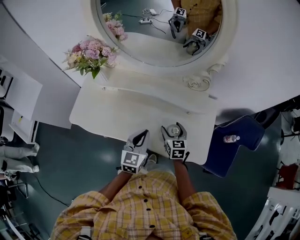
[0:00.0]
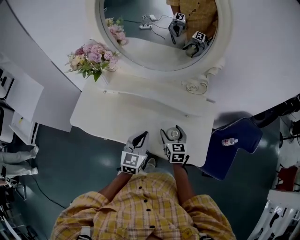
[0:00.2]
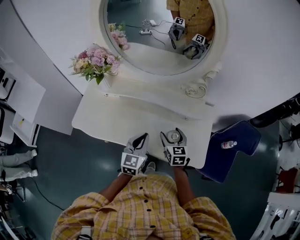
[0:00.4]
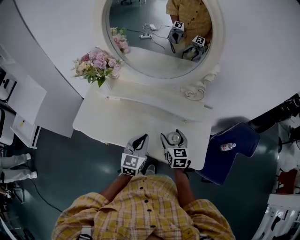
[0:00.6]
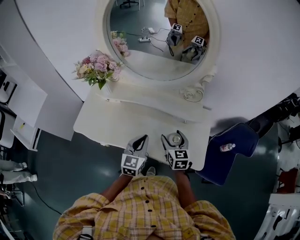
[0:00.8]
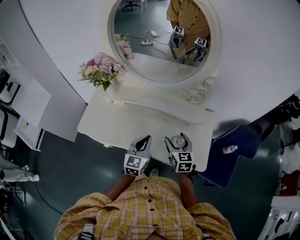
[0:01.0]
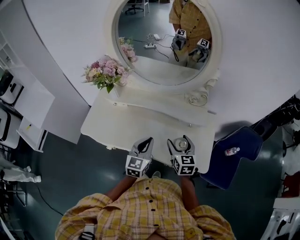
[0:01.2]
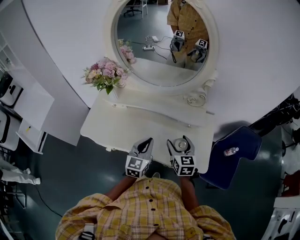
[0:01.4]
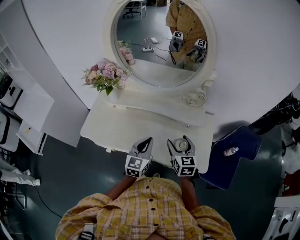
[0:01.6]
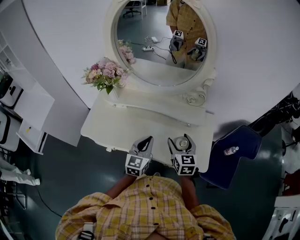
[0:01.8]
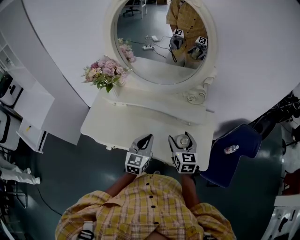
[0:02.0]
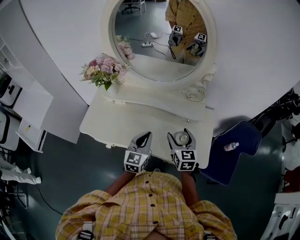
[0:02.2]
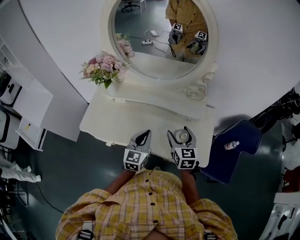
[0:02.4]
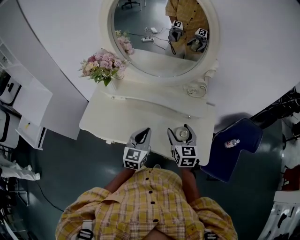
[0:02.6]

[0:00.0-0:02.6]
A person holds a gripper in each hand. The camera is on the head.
0:00.0 to 0:01.2: The left gripper changes place by roughly 5 cm. Meanwhile the right gripper goes some 10 cm upward.
0:01.2 to 0:02.6: The grippers make only small movements.

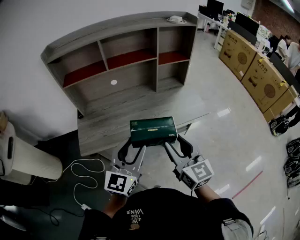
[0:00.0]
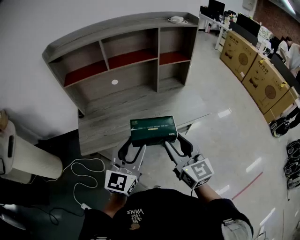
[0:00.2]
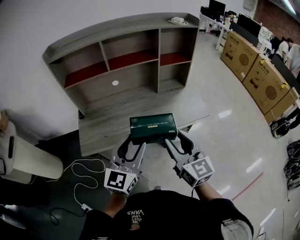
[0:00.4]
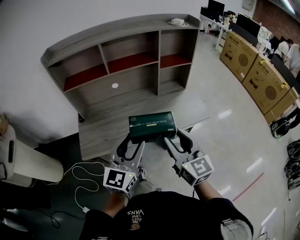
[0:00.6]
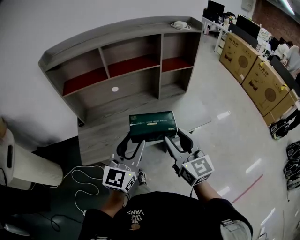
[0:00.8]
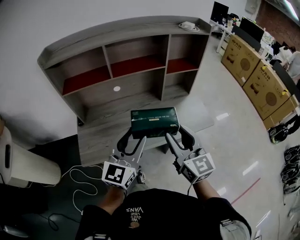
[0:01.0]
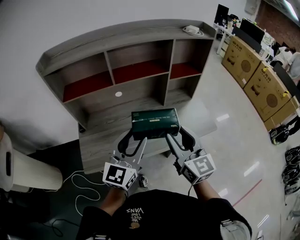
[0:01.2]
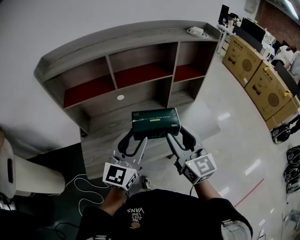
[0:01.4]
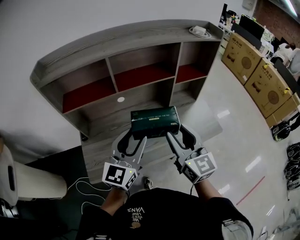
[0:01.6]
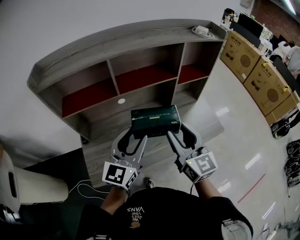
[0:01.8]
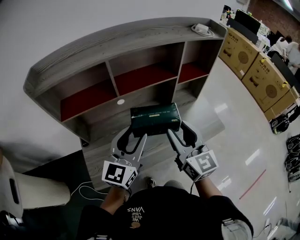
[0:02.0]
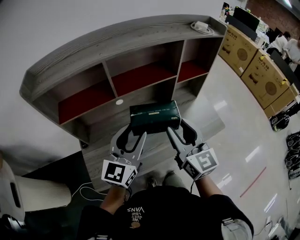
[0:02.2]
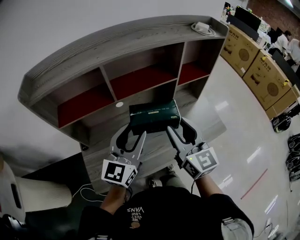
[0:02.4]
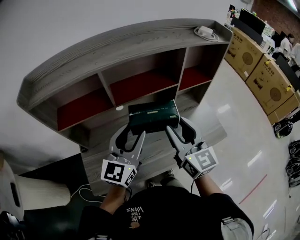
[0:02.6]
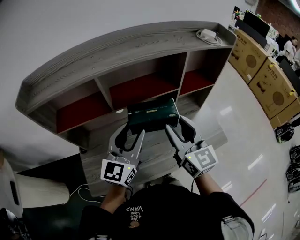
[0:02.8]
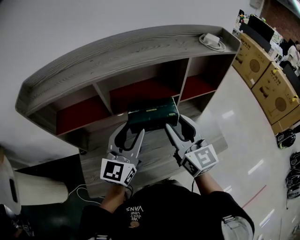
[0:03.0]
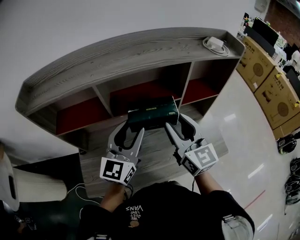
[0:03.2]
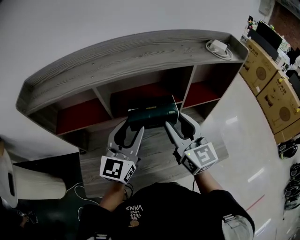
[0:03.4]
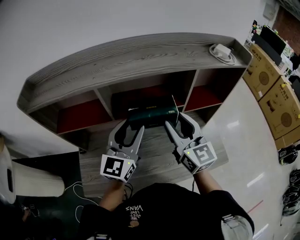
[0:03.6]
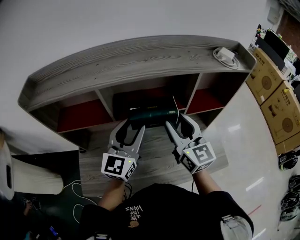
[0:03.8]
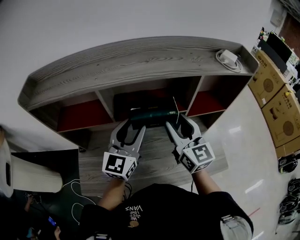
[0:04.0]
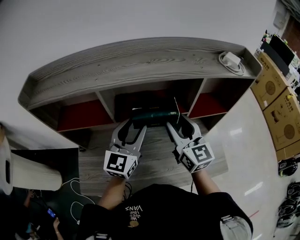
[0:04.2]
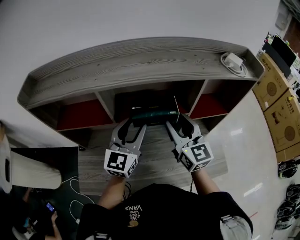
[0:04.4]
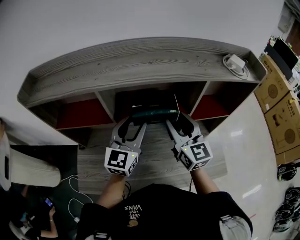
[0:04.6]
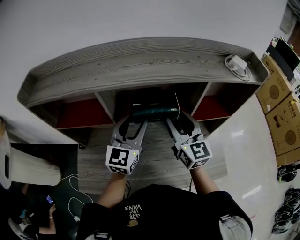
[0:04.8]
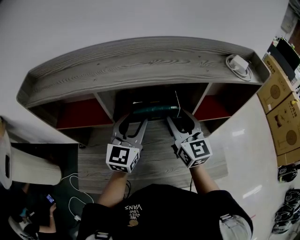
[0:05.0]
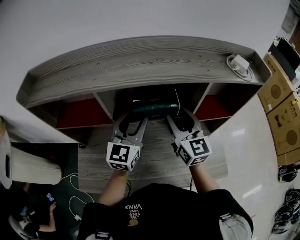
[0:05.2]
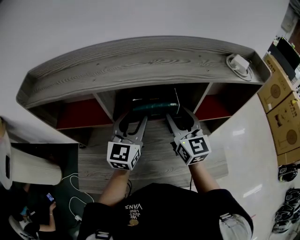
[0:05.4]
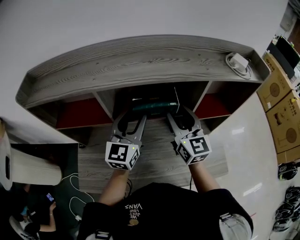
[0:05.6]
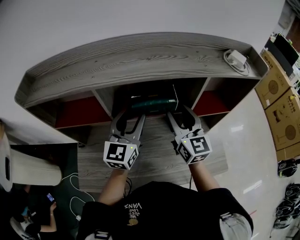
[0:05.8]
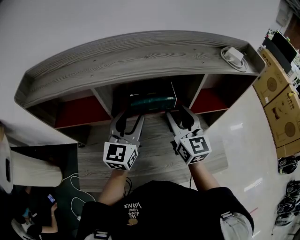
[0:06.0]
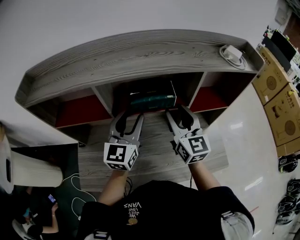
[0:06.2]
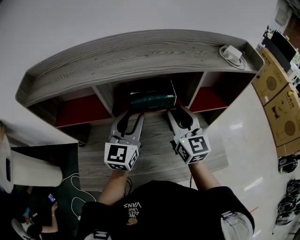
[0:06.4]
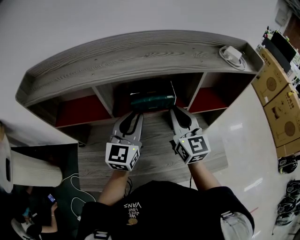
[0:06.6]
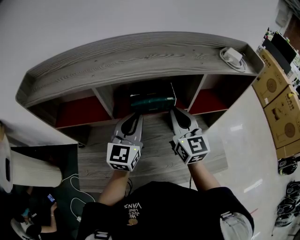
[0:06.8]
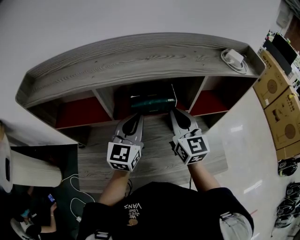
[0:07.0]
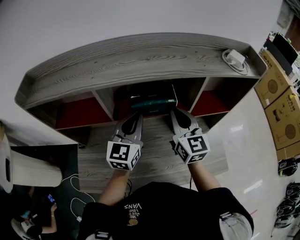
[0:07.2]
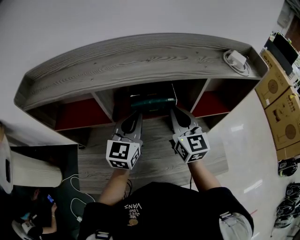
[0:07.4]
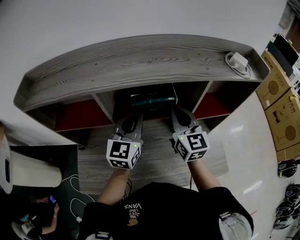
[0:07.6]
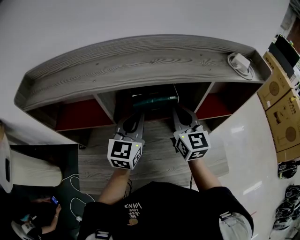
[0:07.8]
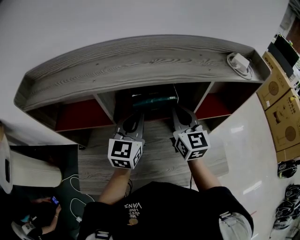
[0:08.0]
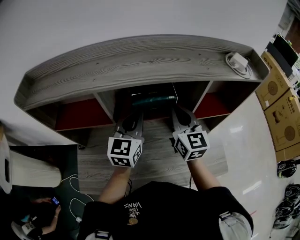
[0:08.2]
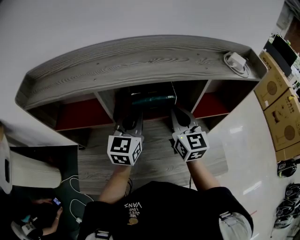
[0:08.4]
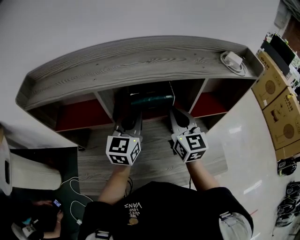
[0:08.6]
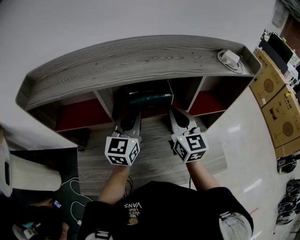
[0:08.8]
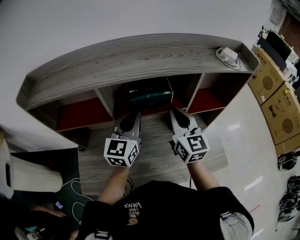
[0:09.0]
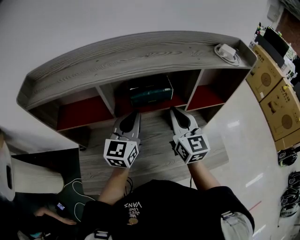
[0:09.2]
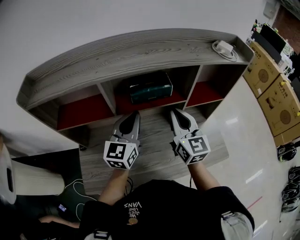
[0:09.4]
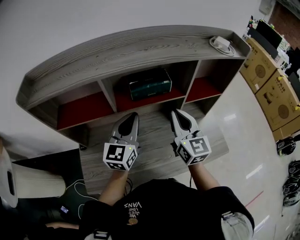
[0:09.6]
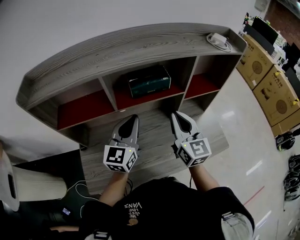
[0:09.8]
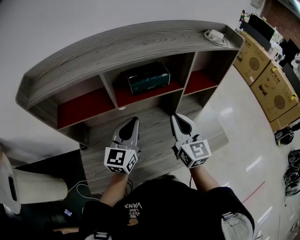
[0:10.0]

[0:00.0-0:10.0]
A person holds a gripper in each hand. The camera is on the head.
0:00.0 to 0:01.4: Both grippers move forward, about 20 cm.
0:01.4 to 0:02.8: Both grippers travel together forward, some 15 cm.
0:02.8 to 0:04.2: The two grippers go approximately 10 cm forward.
0:04.2 to 0:05.8: There are only small adjustments of the grippers.
0:05.8 to 0:07.2: The right gripper closes its fingers; the left gripper closes its fingers.
0:07.2 to 0:08.6: The grippers make only small movements.
0:08.6 to 0:10.0: The two grippers go approximately 10 cm backward.

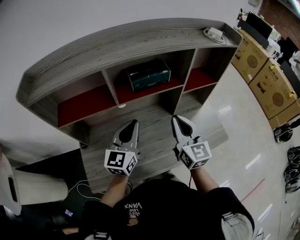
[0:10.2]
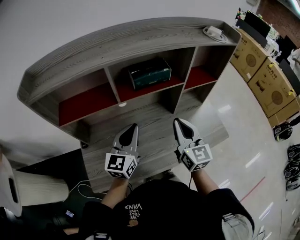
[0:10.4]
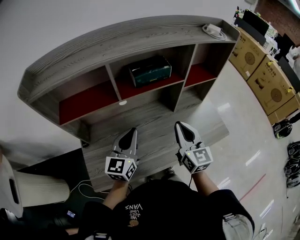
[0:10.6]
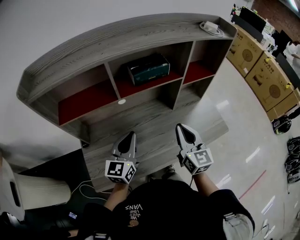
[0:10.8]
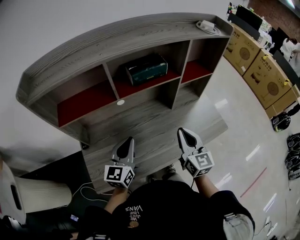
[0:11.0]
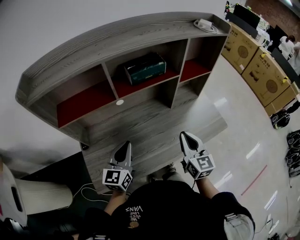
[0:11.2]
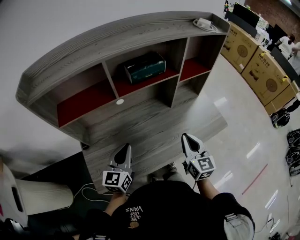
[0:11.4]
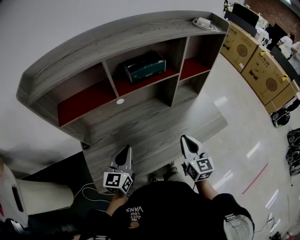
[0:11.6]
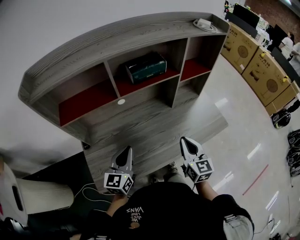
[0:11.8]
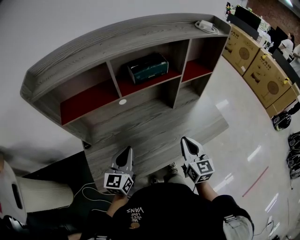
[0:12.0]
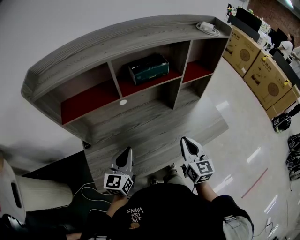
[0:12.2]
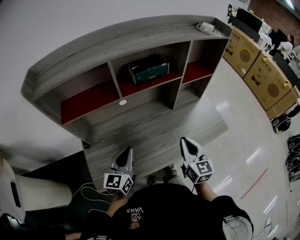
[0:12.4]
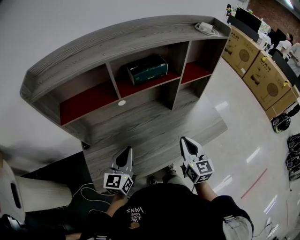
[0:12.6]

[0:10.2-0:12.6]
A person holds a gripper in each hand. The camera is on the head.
0:10.2 to 0:11.4: The left gripper shifts roughly 15 cm backward, downward and to the left. Meanwhile the right gripper is displaced backward and downward by some 15 cm.
0:11.4 to 0:12.6: The grippers stay close to where they were, moving slightly.

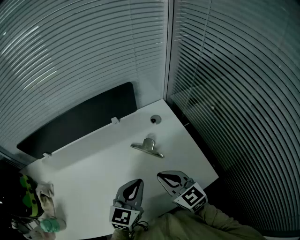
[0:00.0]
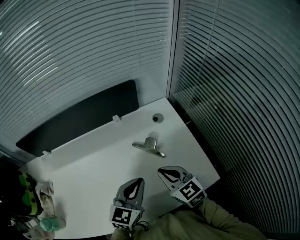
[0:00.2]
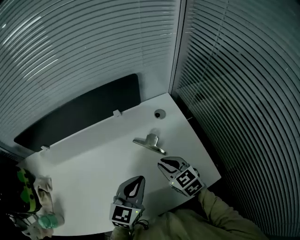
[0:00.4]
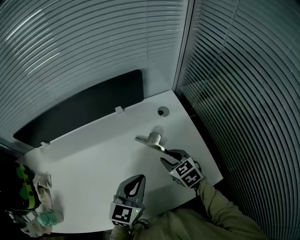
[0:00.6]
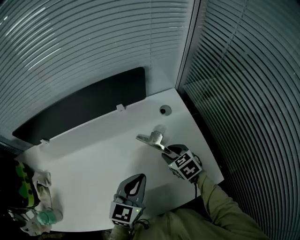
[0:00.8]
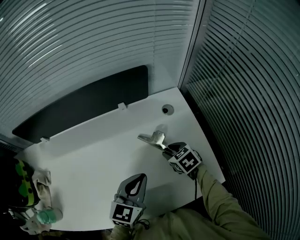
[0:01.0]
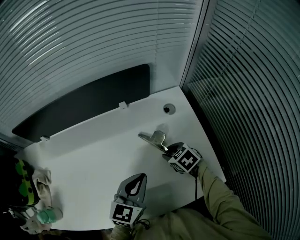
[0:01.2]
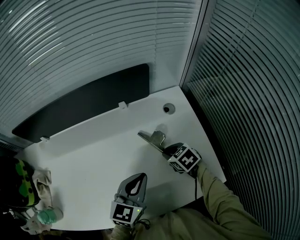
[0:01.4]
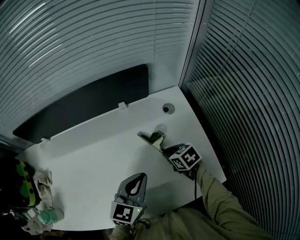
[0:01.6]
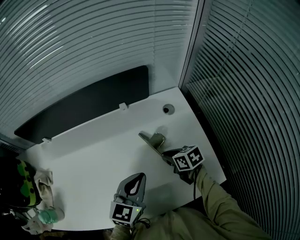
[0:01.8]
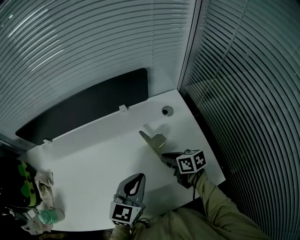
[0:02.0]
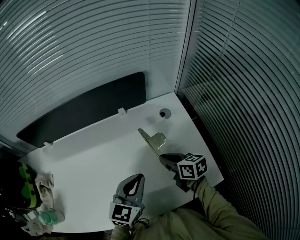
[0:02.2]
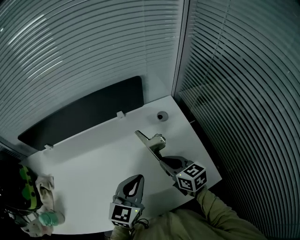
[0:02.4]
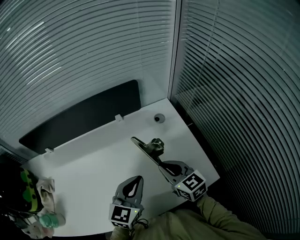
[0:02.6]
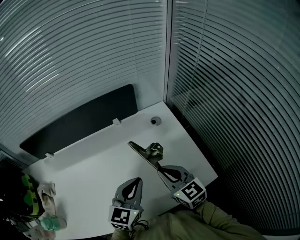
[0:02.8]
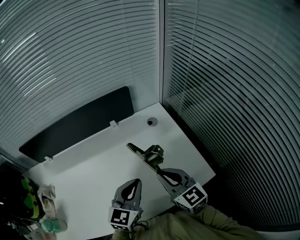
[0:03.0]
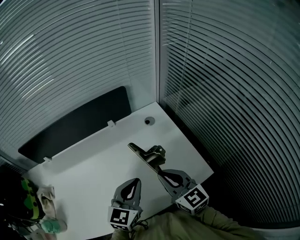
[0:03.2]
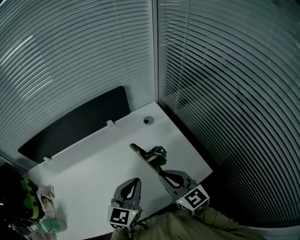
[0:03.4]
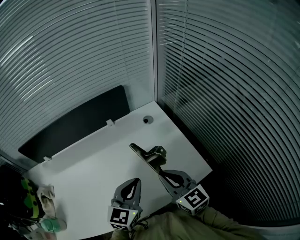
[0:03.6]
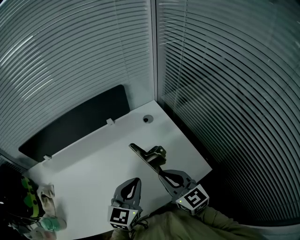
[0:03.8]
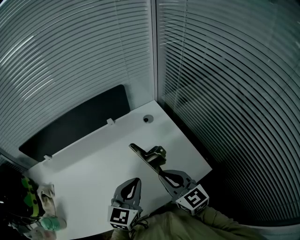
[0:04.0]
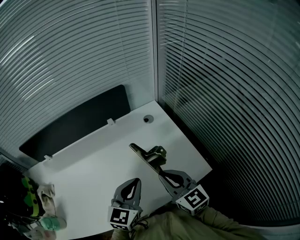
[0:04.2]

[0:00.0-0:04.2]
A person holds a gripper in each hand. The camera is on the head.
0:00.0 to 0:01.4: The left gripper changes place by approximately 5 cm, while the right gripper goes roughly 20 cm downward and forward, and tilts its fingers about 40 degrees downward.
0:01.4 to 0:02.8: The left gripper moves some 5 cm. Meanwhile the right gripper shifts roughly 20 cm upward and backward, and tips its fingers upward by some 40 degrees.
0:02.8 to 0:04.2: The right gripper heads backward, covering some 5 cm.

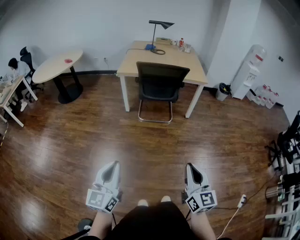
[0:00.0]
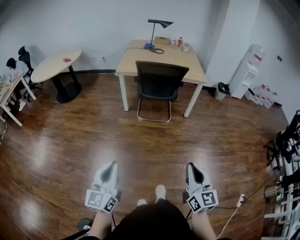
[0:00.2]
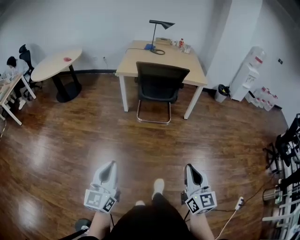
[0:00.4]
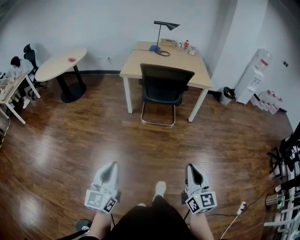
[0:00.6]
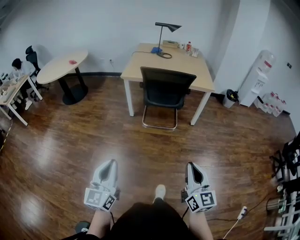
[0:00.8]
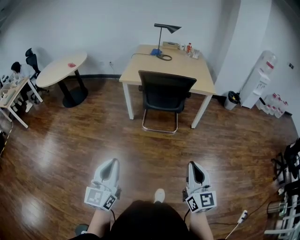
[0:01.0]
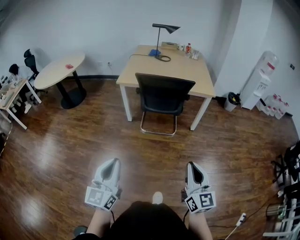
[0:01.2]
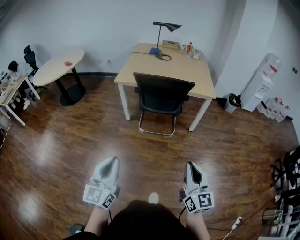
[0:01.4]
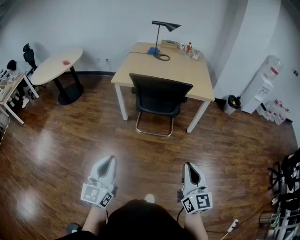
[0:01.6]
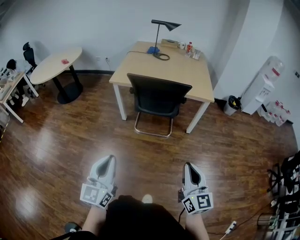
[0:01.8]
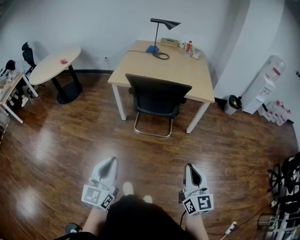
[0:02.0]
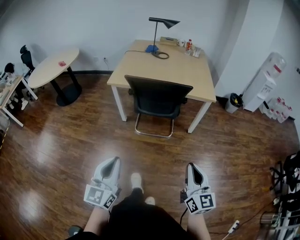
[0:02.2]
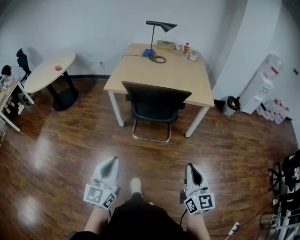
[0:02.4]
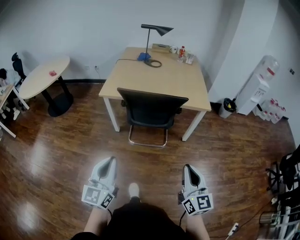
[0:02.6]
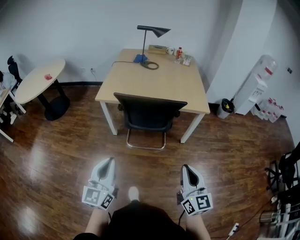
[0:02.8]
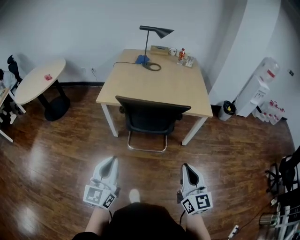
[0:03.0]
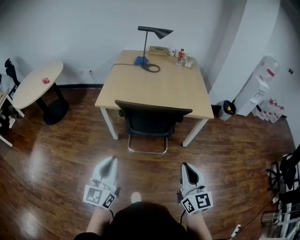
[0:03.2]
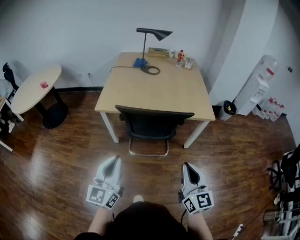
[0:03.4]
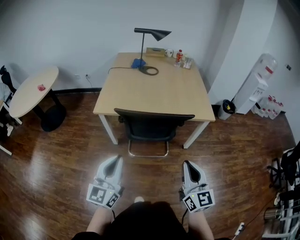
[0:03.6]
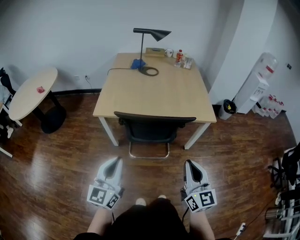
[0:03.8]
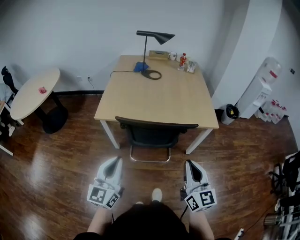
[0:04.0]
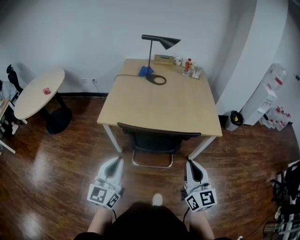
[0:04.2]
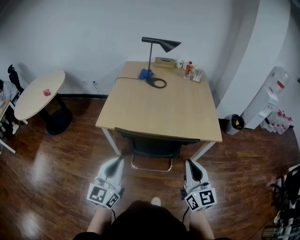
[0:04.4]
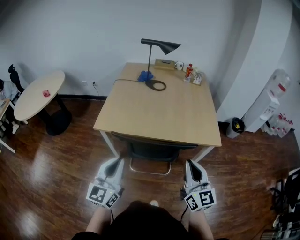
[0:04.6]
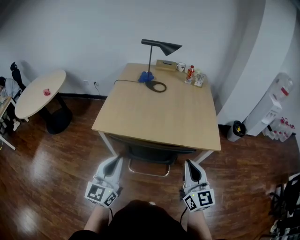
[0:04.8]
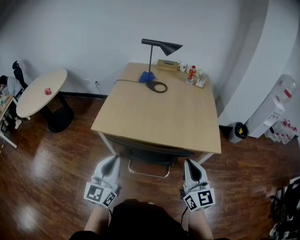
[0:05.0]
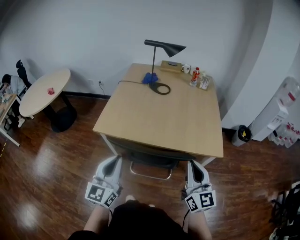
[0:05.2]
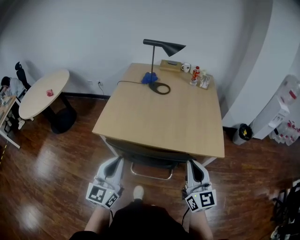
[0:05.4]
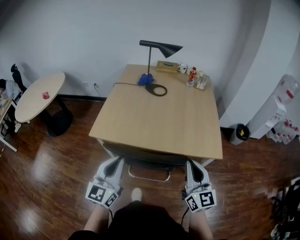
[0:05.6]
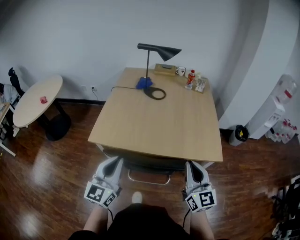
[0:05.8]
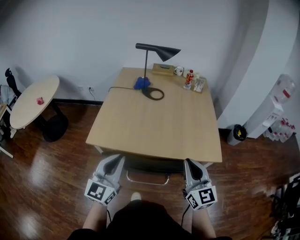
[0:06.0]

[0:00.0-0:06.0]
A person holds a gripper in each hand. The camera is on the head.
0:00.0 to 0:01.6: Both grippers travel together forward, about 25 cm.
0:01.6 to 0:03.0: The grippers both shift forward by roughly 20 cm.
0:03.0 to 0:04.4: Both grippers move forward, roughly 20 cm.
0:04.4 to 0:06.0: Both grippers travel together forward, roughly 15 cm.
